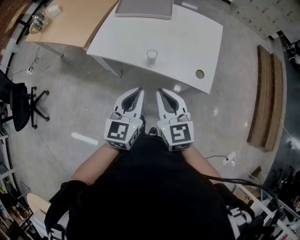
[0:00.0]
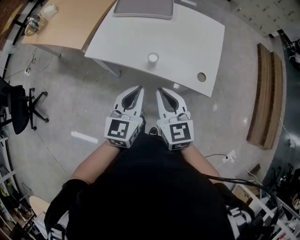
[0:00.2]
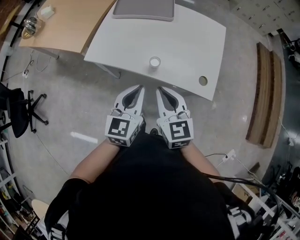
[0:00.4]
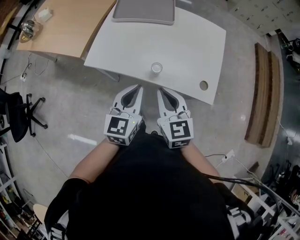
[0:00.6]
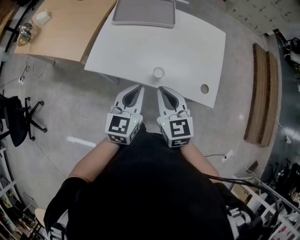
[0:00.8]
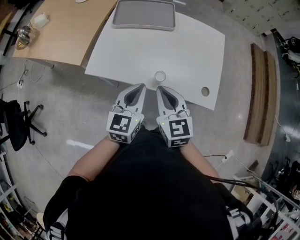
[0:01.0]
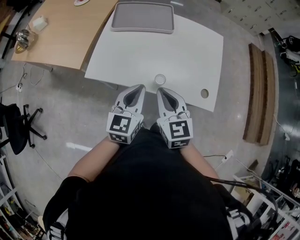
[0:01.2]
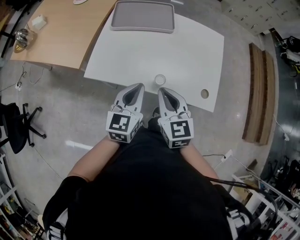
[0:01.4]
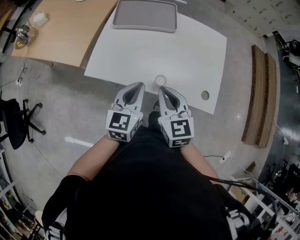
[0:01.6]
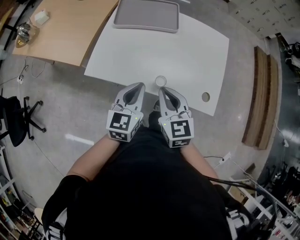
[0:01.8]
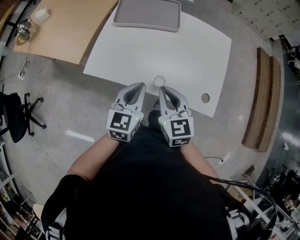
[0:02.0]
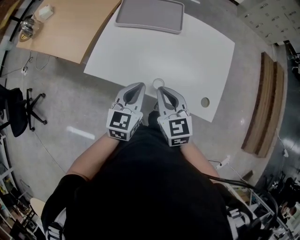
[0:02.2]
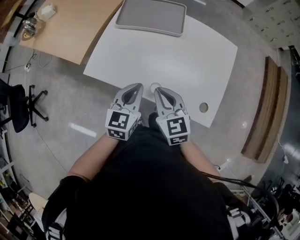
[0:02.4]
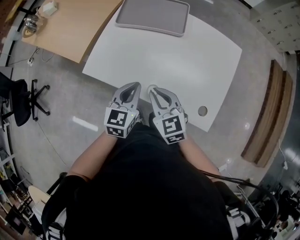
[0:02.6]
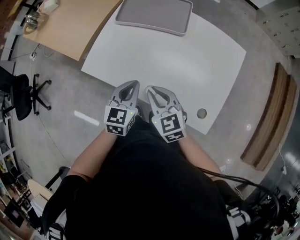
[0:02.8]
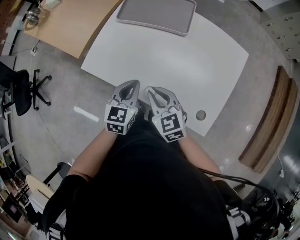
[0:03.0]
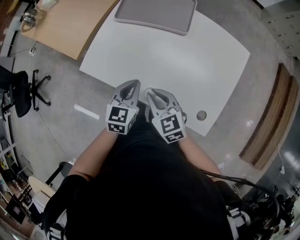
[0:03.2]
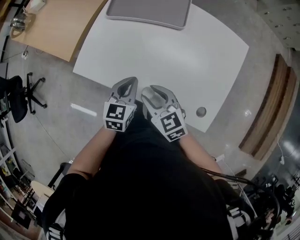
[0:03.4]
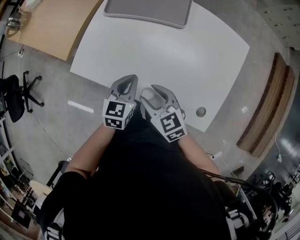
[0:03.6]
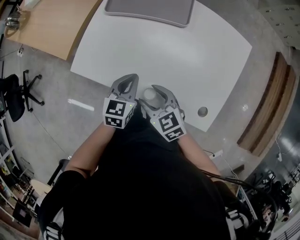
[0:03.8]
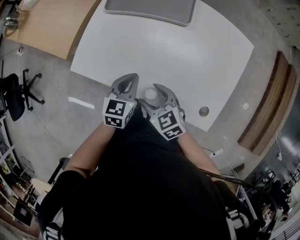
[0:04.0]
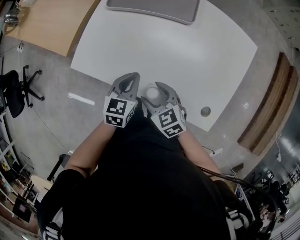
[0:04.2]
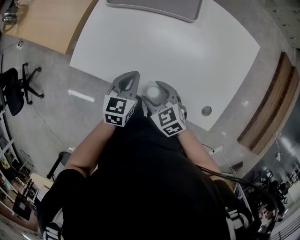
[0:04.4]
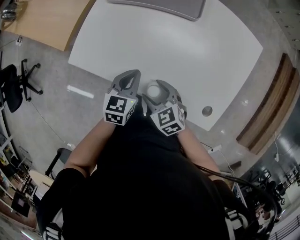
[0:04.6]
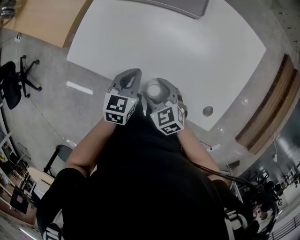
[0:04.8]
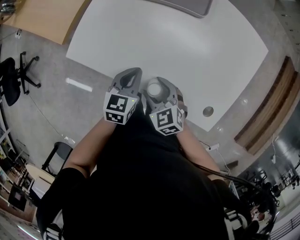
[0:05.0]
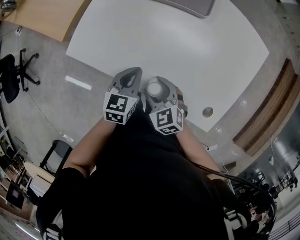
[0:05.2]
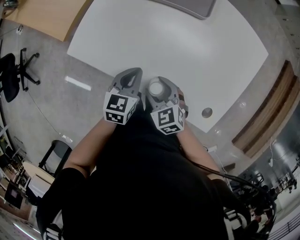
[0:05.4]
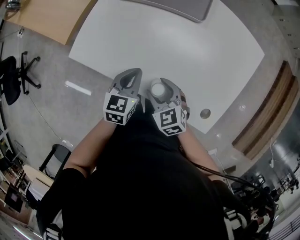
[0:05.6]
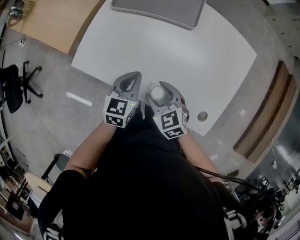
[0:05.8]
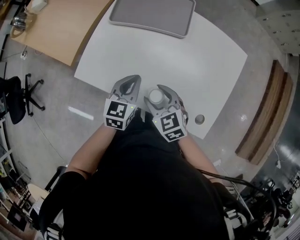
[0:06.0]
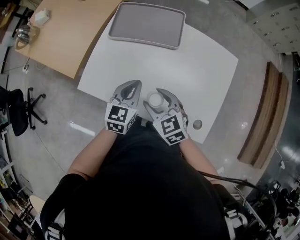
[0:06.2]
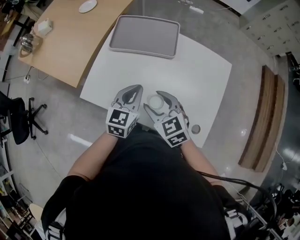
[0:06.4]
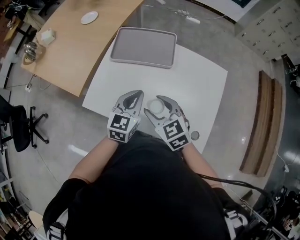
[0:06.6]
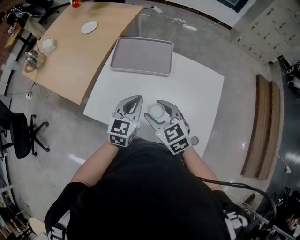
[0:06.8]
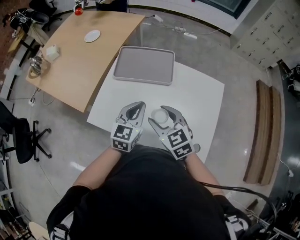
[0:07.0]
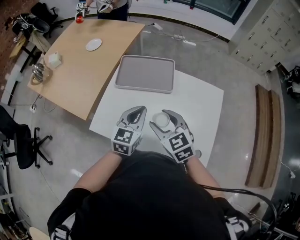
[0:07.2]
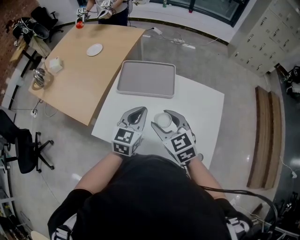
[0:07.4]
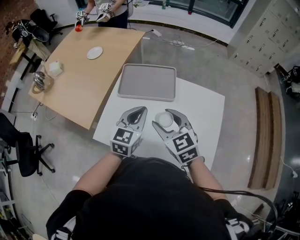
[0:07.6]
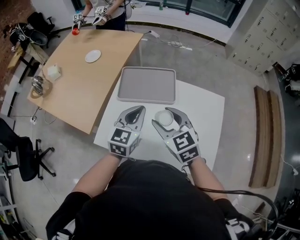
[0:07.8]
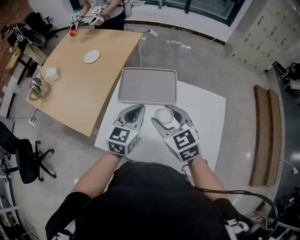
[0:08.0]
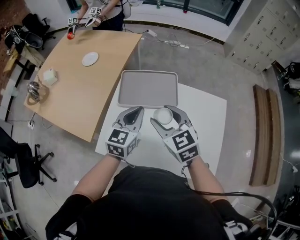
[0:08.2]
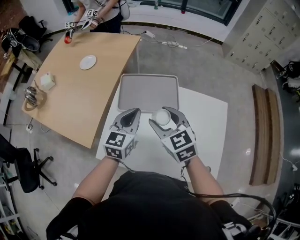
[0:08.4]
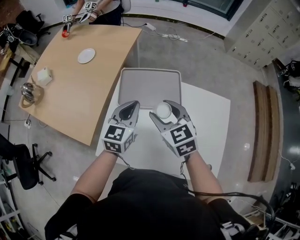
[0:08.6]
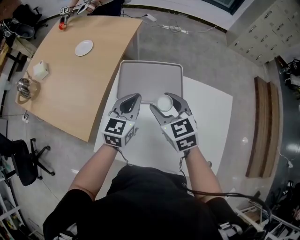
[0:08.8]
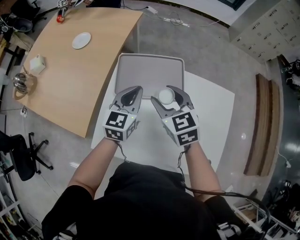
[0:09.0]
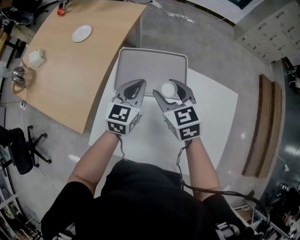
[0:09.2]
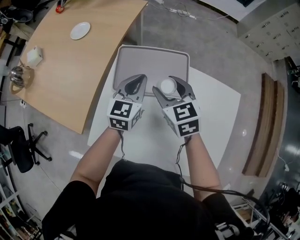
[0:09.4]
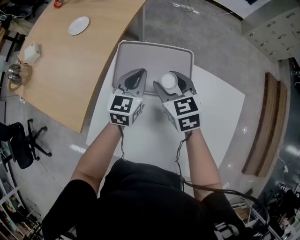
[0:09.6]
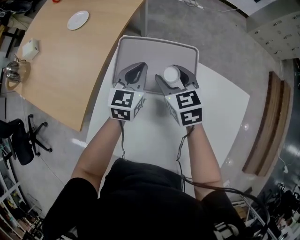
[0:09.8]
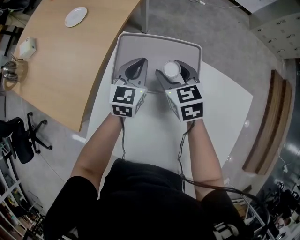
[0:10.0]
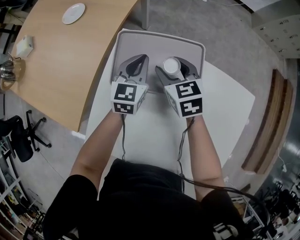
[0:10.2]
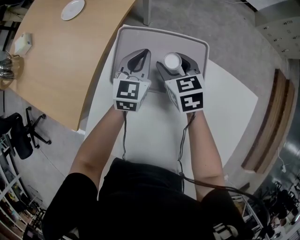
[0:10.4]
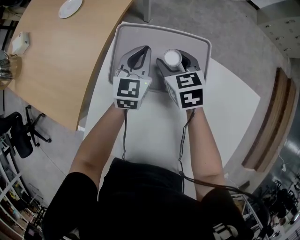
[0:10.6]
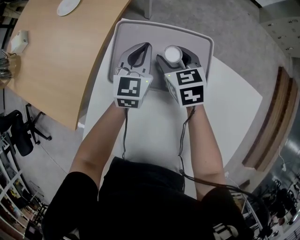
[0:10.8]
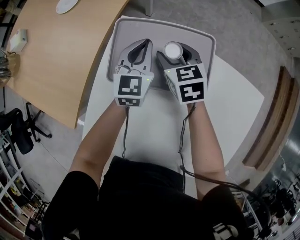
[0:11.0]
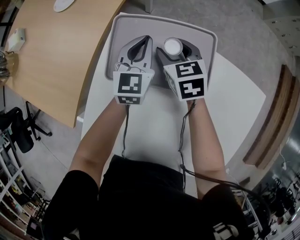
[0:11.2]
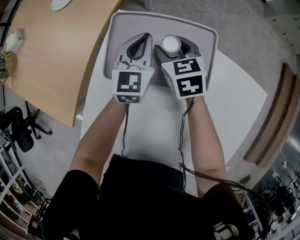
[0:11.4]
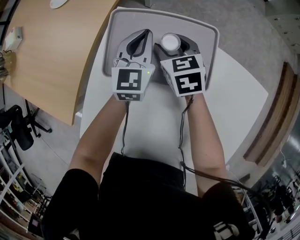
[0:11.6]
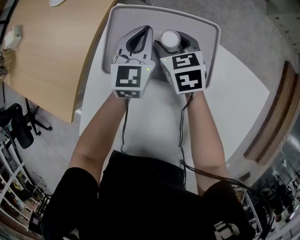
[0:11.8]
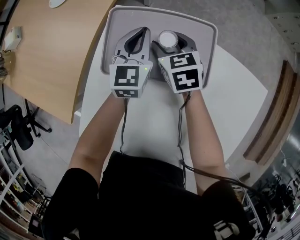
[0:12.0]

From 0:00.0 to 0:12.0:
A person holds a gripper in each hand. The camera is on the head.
From 0:00.0 to 0:01.6: Both grippers move forward and to the left, approximately 20 cm.
From 0:01.6 to 0:03.0: The left gripper is displaced forward, downward and to the right by about 15 cm. Meanwhile the right gripper heads downward, forward and to the right, covering some 15 cm, and rotates some 30 degrees.
From 0:03.0 to 0:04.4: The two grippers go some 10 cm downward. The right gripper opens.
From 0:04.4 to 0:06.0: The grippers both shift upward by some 5 cm.
From 0:06.0 to 0:07.6: The right gripper is displaced upward and forward by some 25 cm. The left gripper moves upward, roughly 20 cm.
From 0:07.6 to 0:09.0: Both grippers move forward, roughly 20 cm.
From 0:09.0 to 0:10.4: The right gripper moves downward and forward, approximately 25 cm; the left gripper moves forward and downward, roughly 20 cm.
From 0:10.4 to 0:12.0: The right gripper moves downward, about 5 cm.

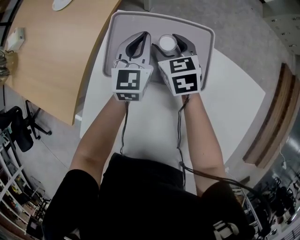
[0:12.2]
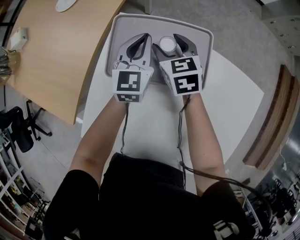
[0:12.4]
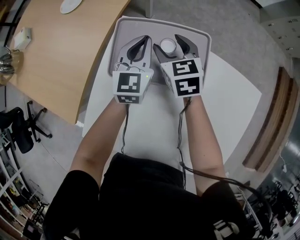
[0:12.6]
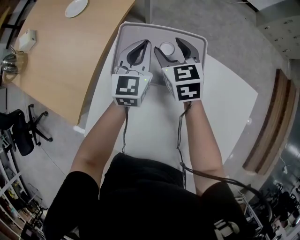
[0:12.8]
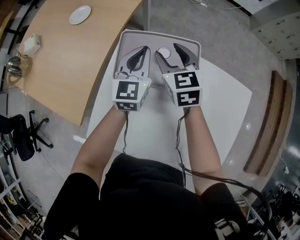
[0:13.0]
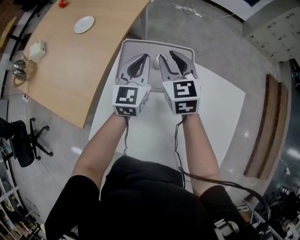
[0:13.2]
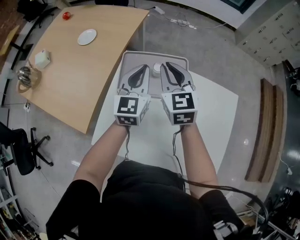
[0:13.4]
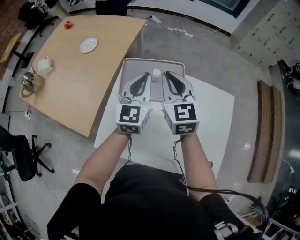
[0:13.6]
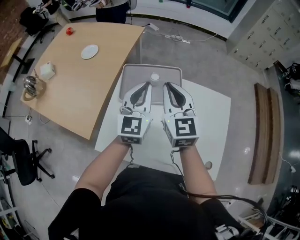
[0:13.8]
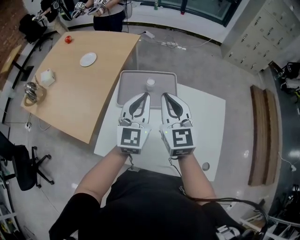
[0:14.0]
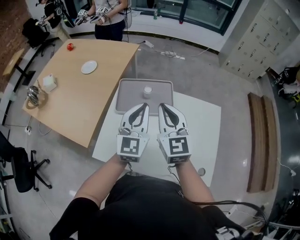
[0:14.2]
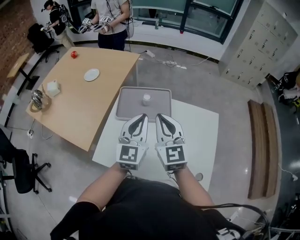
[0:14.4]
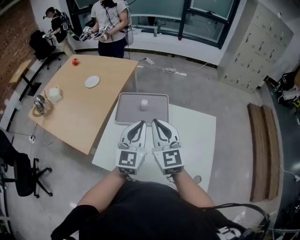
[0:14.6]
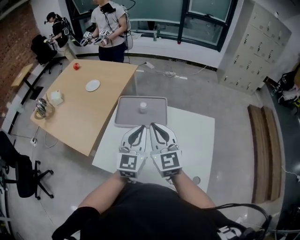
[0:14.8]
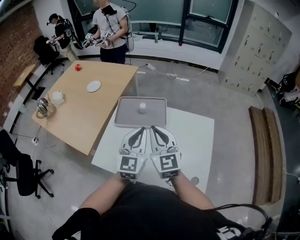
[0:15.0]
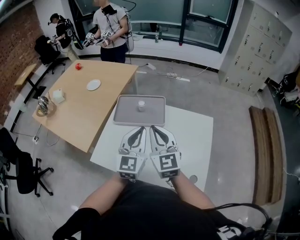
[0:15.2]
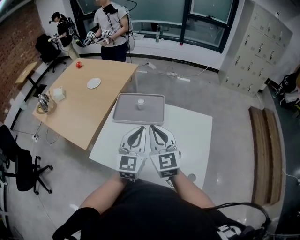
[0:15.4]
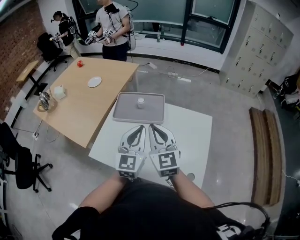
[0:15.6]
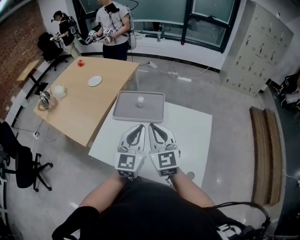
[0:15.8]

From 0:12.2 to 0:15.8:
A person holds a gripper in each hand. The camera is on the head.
From 0:12.2 to 0:14.0: Both grippers travel together upward and backward, roughly 40 cm. The right gripper angles its fingers upward, by some 30 degrees, and closes.
From 0:14.0 to 0:15.8: The grippers both shift backward and to the right by some 20 cm.

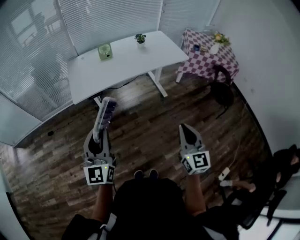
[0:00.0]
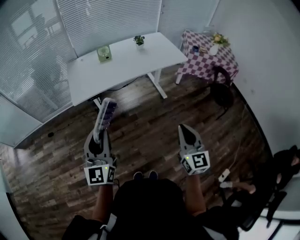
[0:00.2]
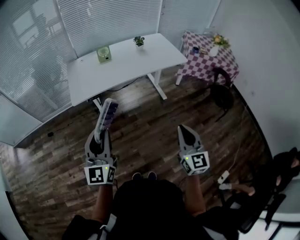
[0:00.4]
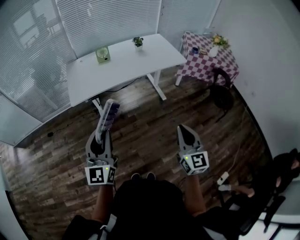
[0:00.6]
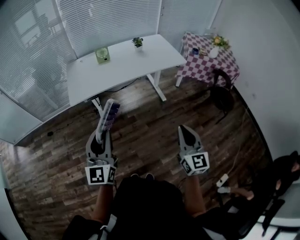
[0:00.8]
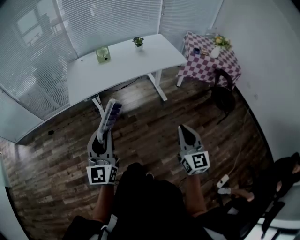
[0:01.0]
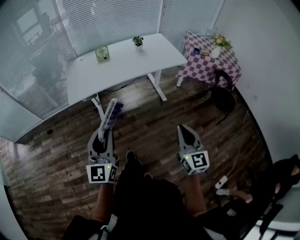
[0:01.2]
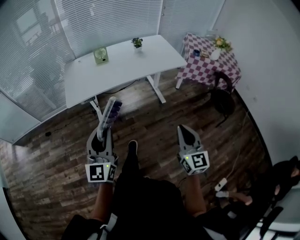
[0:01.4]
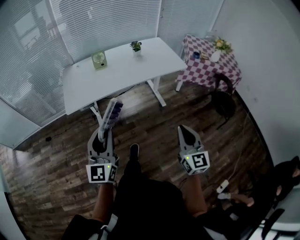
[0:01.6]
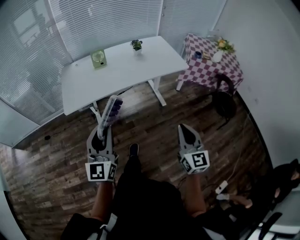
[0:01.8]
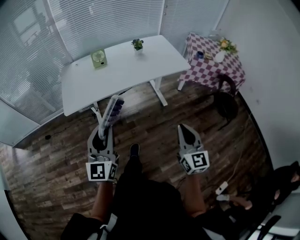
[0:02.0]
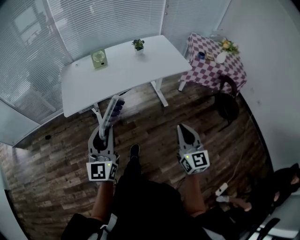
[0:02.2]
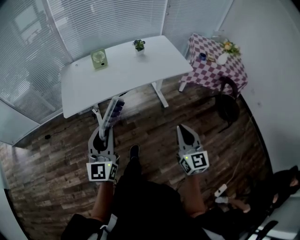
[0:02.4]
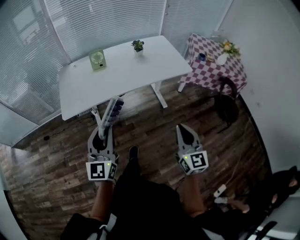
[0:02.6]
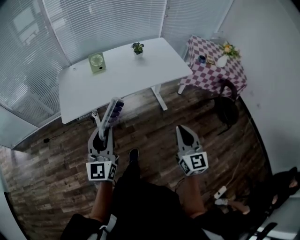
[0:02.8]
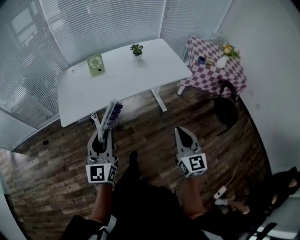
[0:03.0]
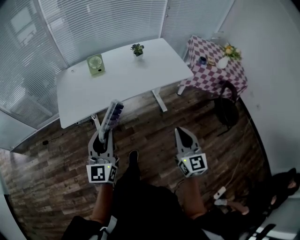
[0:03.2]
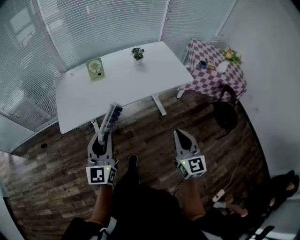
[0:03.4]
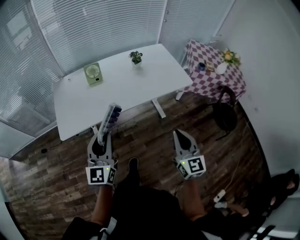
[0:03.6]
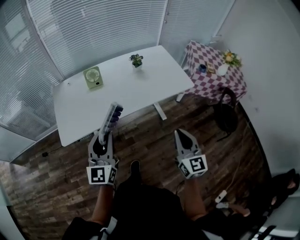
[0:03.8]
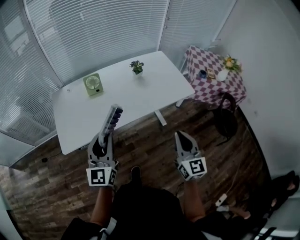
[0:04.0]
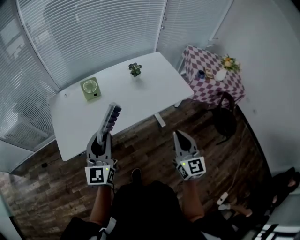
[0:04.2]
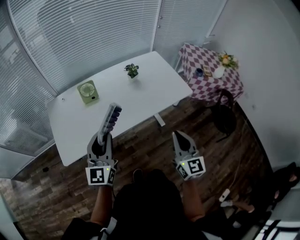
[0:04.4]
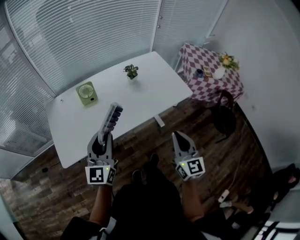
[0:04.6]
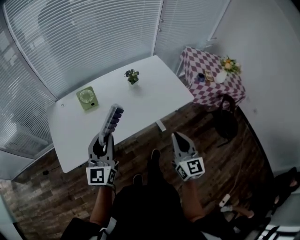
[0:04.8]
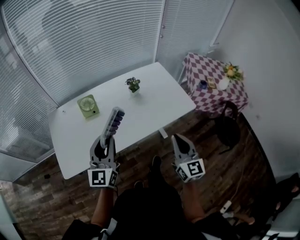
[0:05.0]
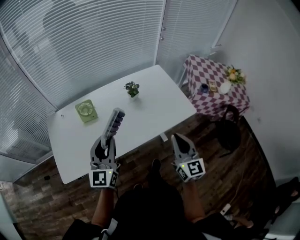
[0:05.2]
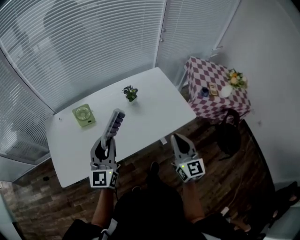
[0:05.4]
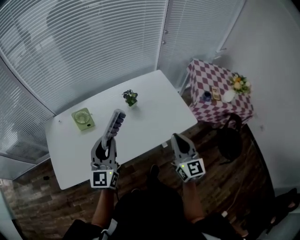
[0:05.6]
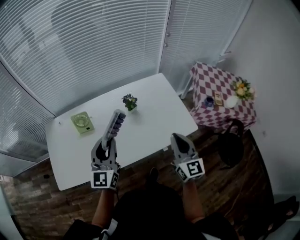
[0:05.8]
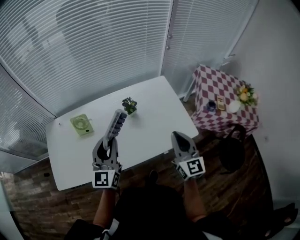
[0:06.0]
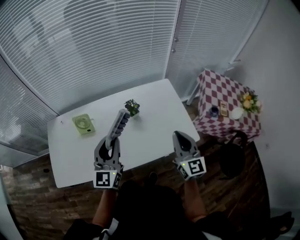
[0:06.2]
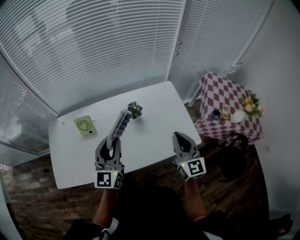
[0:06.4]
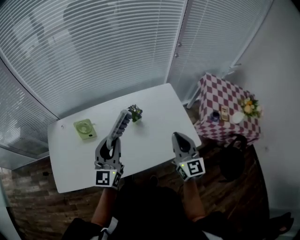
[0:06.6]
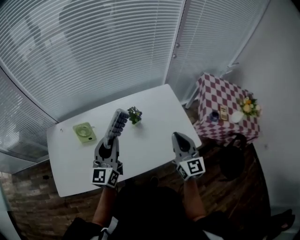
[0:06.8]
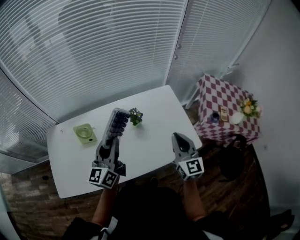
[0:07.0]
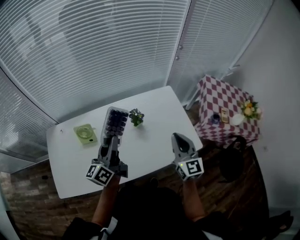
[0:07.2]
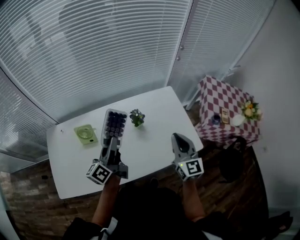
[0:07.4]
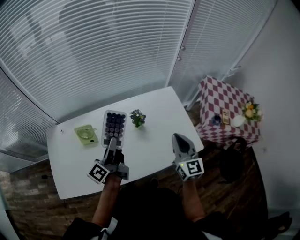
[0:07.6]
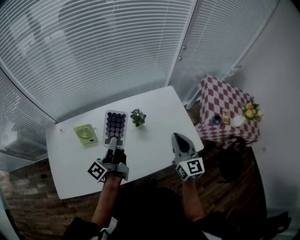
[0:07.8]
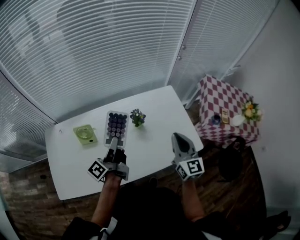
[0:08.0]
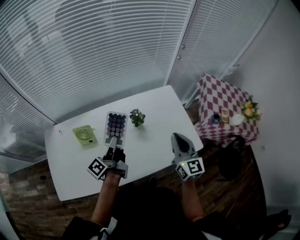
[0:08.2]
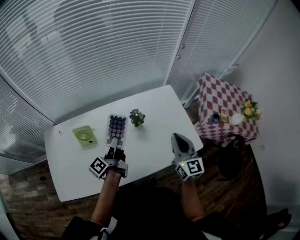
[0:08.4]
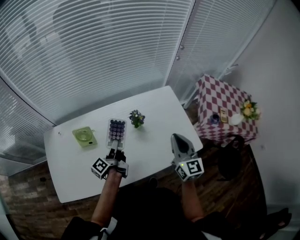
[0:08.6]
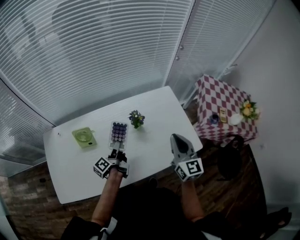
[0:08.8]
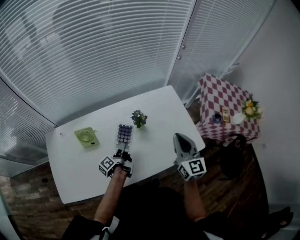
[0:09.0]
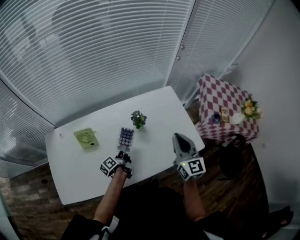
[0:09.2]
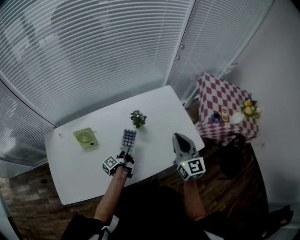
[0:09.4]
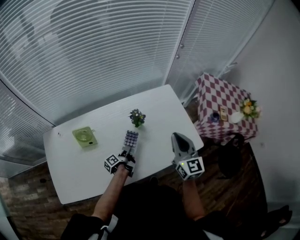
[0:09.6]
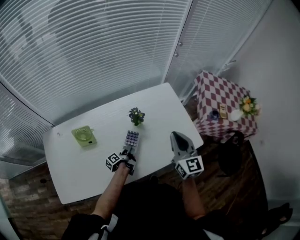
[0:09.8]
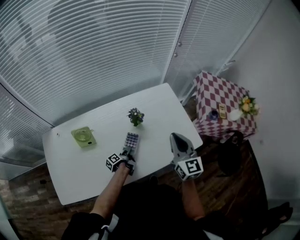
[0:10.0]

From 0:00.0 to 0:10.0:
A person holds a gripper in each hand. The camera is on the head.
From 0:00.0 to 0:01.4: Both grippers travel together to the right, some 10 cm.
From 0:01.4 to 0:02.8: The grippers both shift forward by some 15 cm.
From 0:02.8 to 0:04.2: The grippers both shift forward by some 20 cm.
From 0:04.2 to 0:05.8: The left gripper shifts about 25 cm forward and to the right. Meanwhile the right gripper travels forward by approximately 25 cm.
From 0:05.8 to 0:07.2: Both grippers travel together forward, approximately 10 cm. The left gripper rotates around the line of its fingers by some 40 degrees, counterclockwise from behind.
From 0:07.2 to 0:08.6: The left gripper travels downward by about 15 cm, and turns by some 40 degrees.
From 0:08.6 to 0:10.0: The left gripper is displaced downward by approximately 25 cm, and turns by some 30 degrees.
